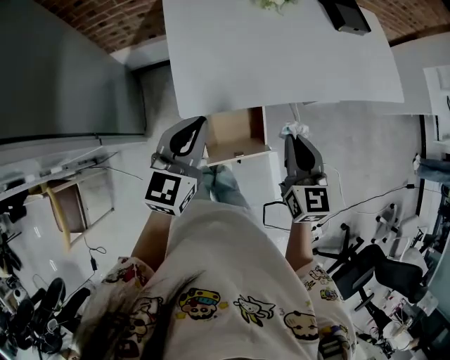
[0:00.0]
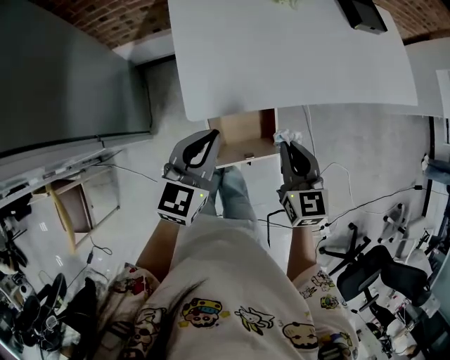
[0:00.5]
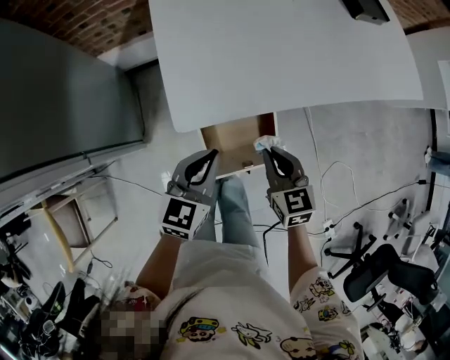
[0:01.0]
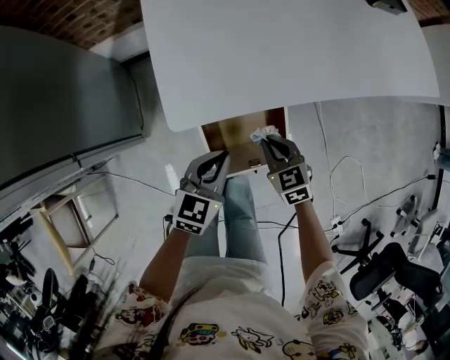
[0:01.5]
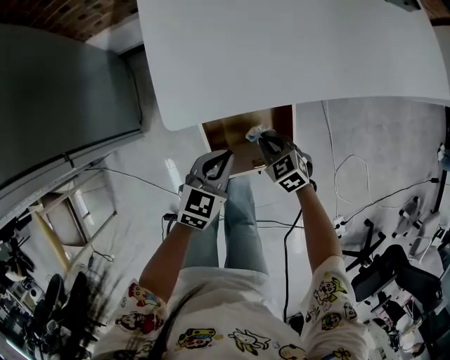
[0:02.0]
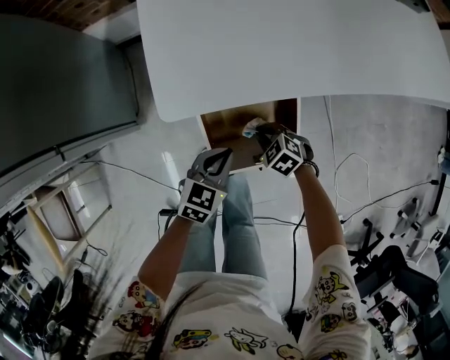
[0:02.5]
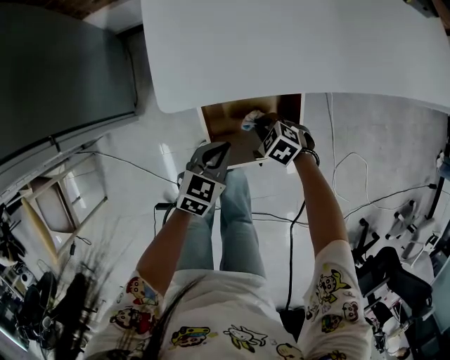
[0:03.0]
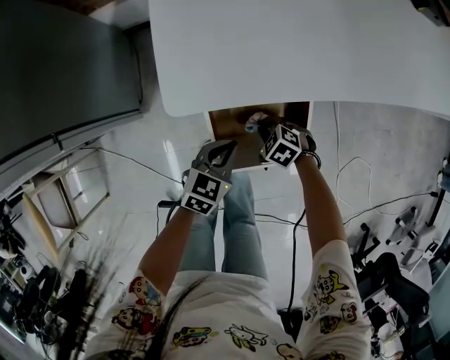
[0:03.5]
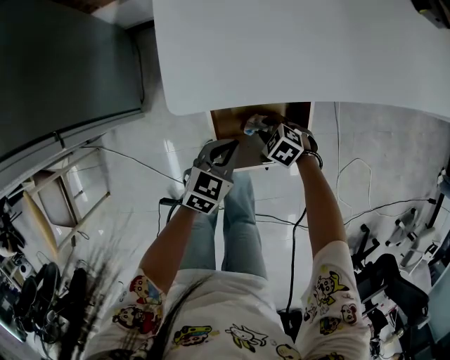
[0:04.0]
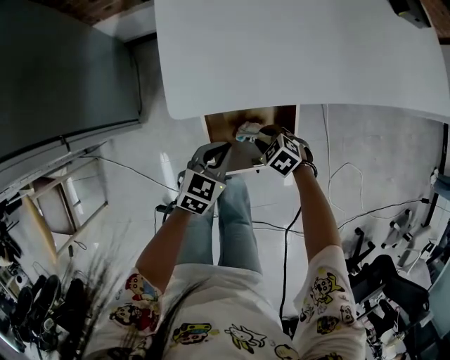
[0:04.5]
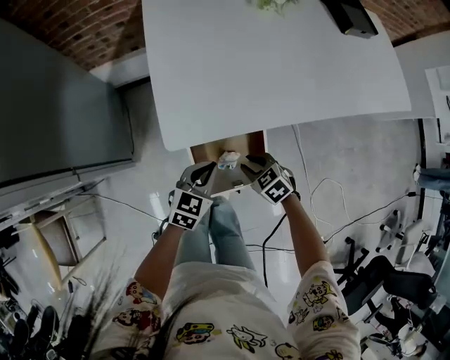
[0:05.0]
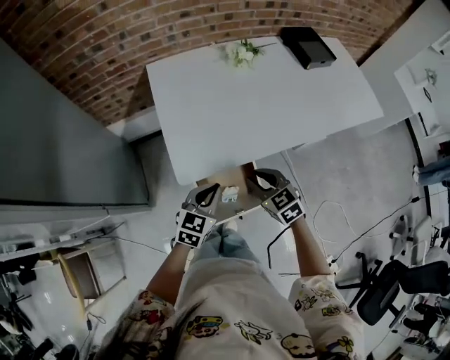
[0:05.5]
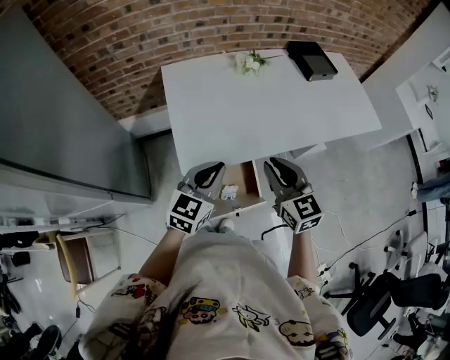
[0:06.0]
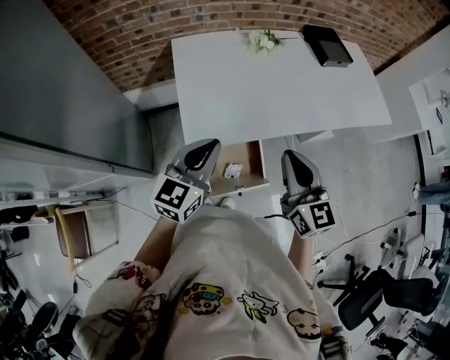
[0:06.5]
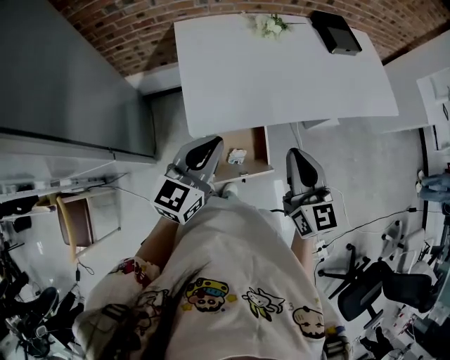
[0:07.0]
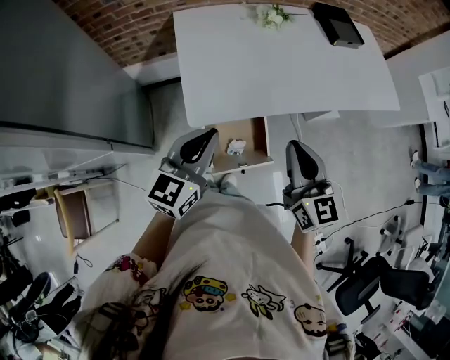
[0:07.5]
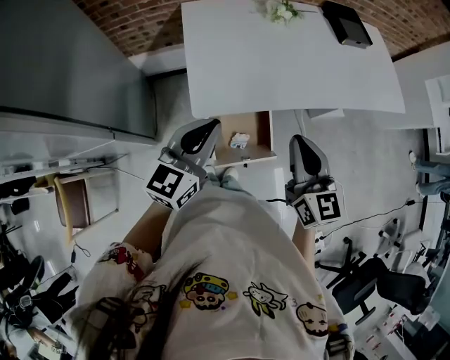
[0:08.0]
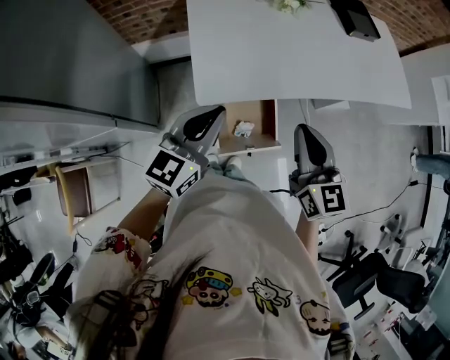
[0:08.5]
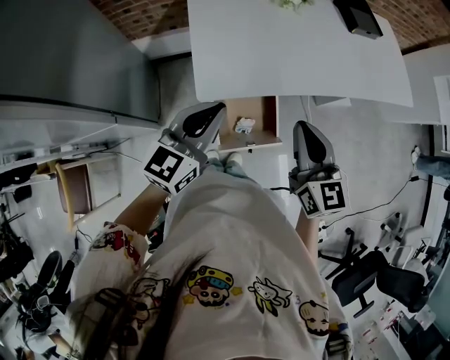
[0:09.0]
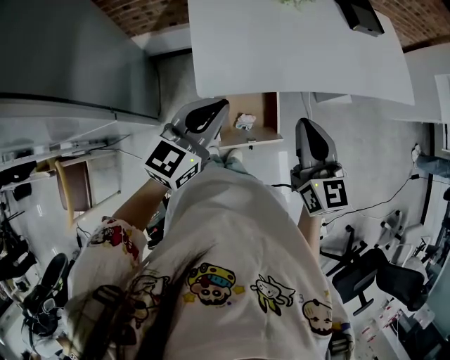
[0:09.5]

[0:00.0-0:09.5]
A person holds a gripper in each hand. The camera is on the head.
0:00.0 to 0:02.0: The grippers both shift downward by roughly 35 cm. The left gripper swivels about 20 degrees; the right gripper tilts its fingers approximately 30 degrees downward.
0:02.0 to 0:04.0: The grippers both shift downward by about 10 cm. The right gripper swivels some 30 degrees, and opens up.
0:04.0 to 0:05.5: Both grippers move upward, roughly 30 cm. The right gripper tips its fingers upward by approximately 30 degrees.
0:05.5 to 0:07.5: The two grippers go some 20 cm upward. The right gripper changes its angle by roughly 40 degrees, and closes its fingers.
0:07.5 to 0:09.5: The grippers move only a little.

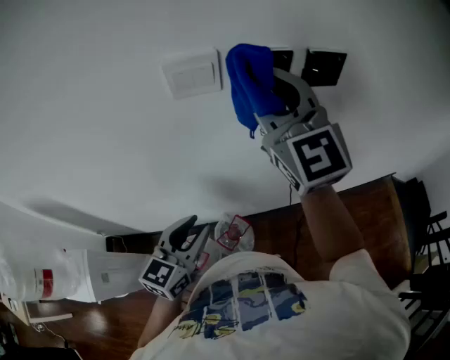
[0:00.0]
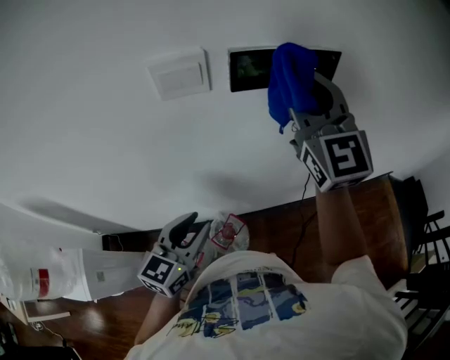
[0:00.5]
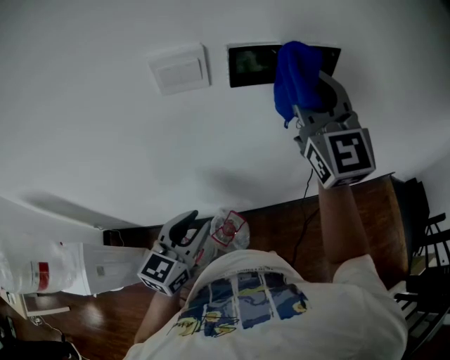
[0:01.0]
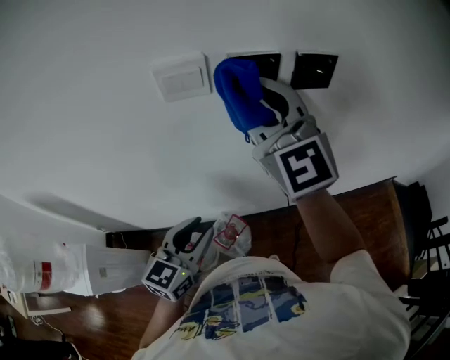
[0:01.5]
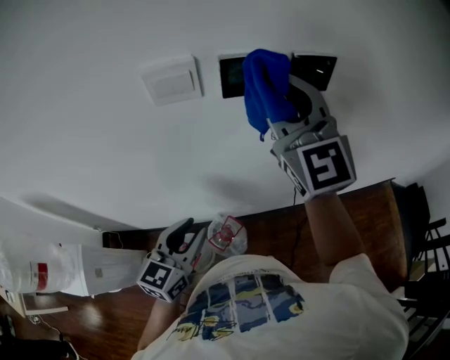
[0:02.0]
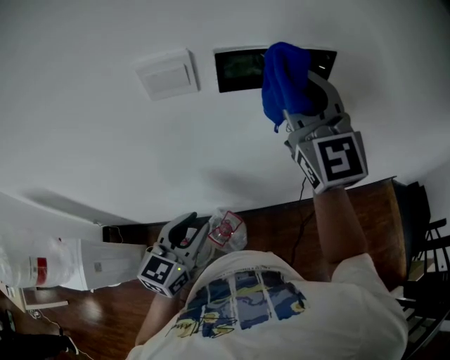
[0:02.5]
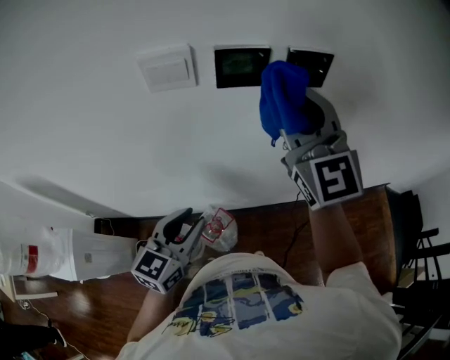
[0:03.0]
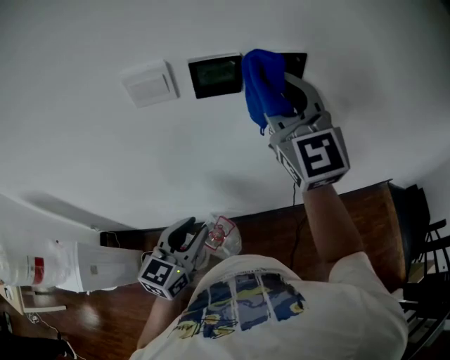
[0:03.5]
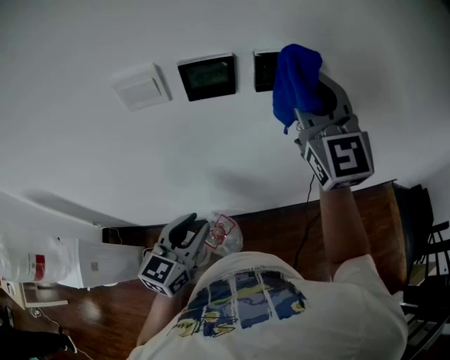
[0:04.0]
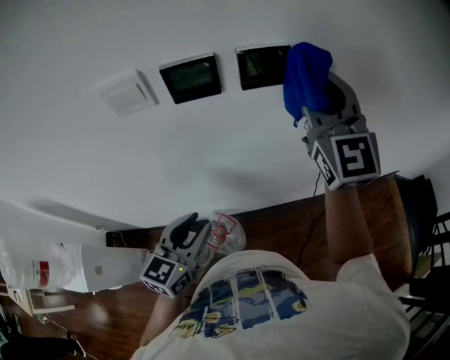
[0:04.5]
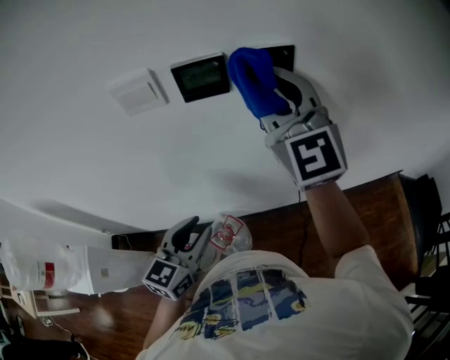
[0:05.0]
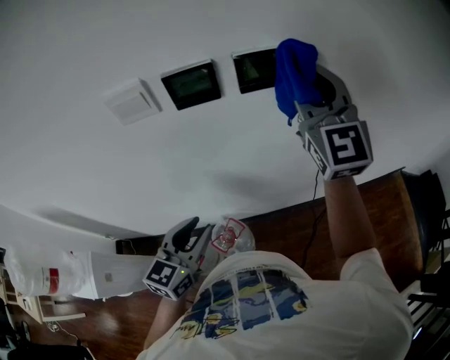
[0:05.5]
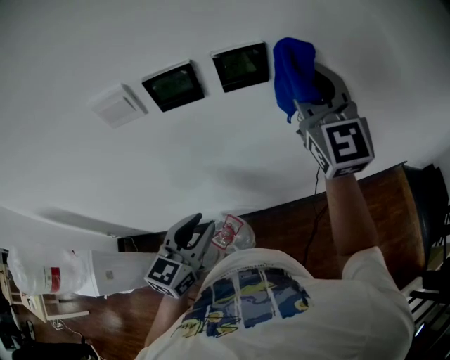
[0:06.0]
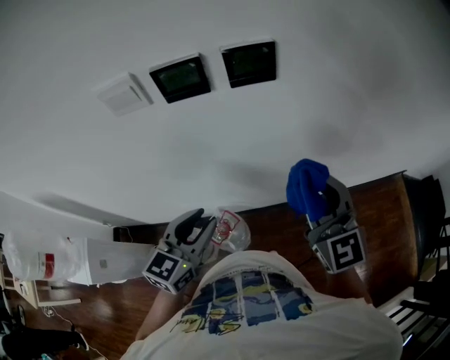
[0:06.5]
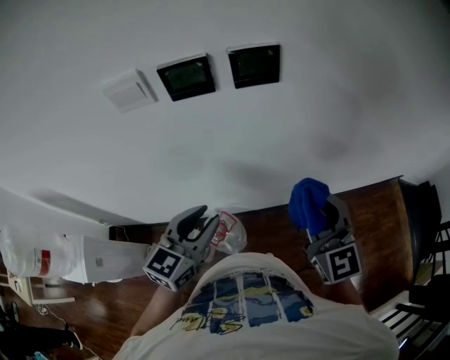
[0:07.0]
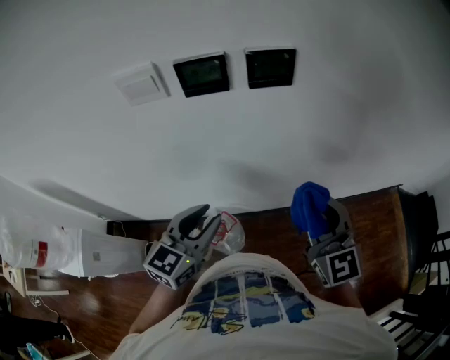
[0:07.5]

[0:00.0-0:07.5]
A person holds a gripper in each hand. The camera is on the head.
0:00.0 to 0:02.0: The right gripper goes left and right, roughly 10 cm each way, reversing 2 times.
0:02.0 to 0:04.0: The left gripper moves to the right, about 5 cm, while the right gripper heads to the right, covering roughly 10 cm.
0:04.0 to 0:05.5: The right gripper moves left and right over about 10 cm, changing direction 2 times.
0:05.5 to 0:07.5: The right gripper goes approximately 25 cm downward and backward, and swivels approximately 20 degrees.

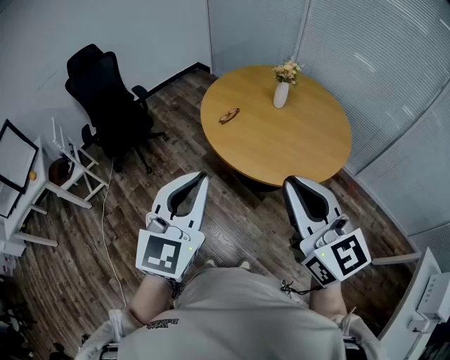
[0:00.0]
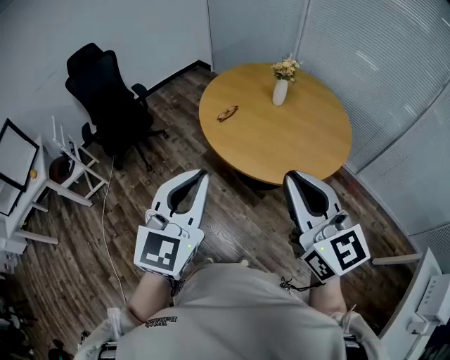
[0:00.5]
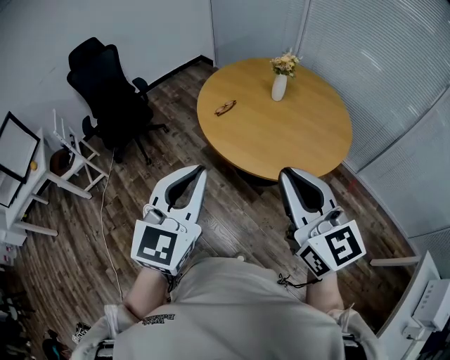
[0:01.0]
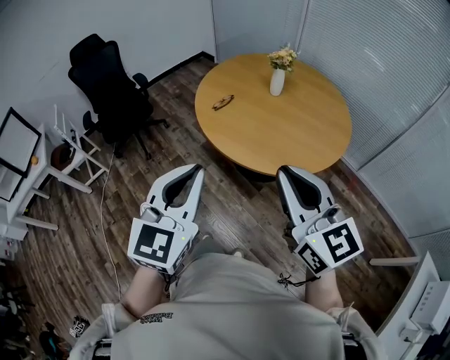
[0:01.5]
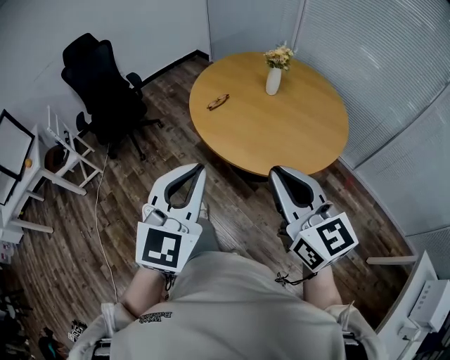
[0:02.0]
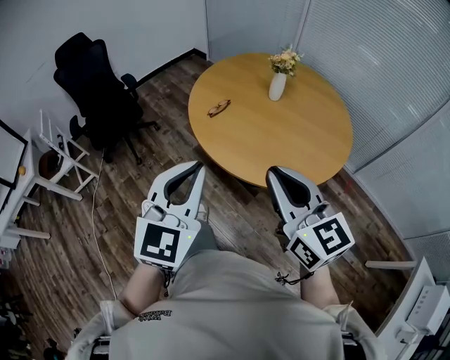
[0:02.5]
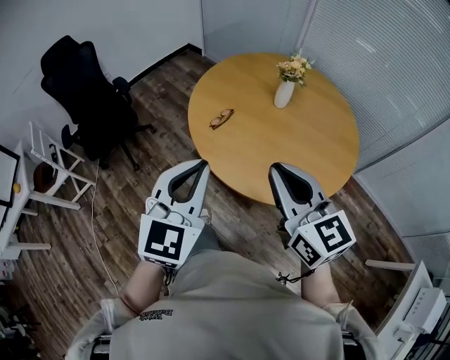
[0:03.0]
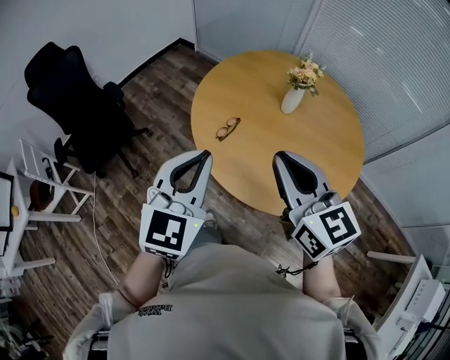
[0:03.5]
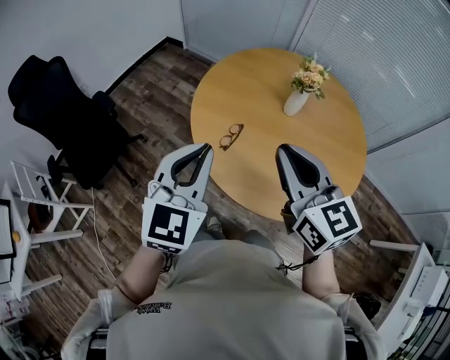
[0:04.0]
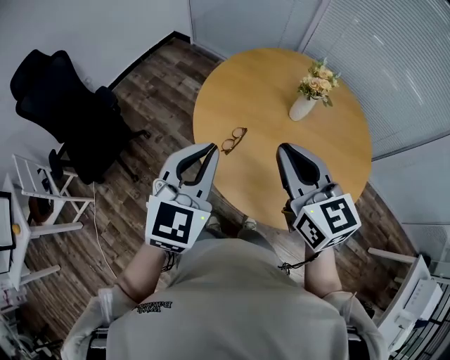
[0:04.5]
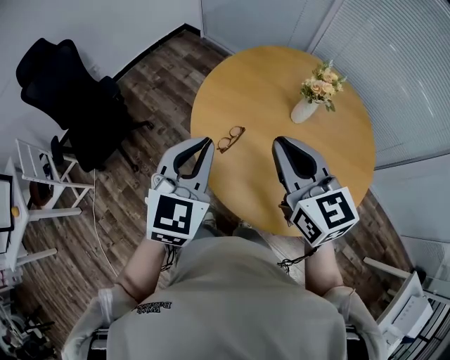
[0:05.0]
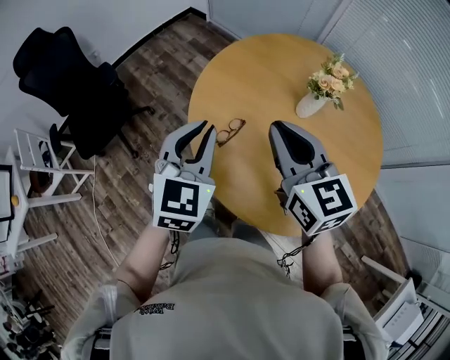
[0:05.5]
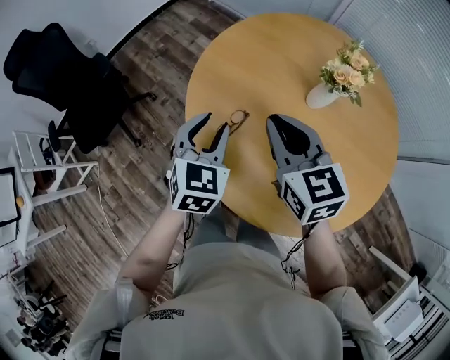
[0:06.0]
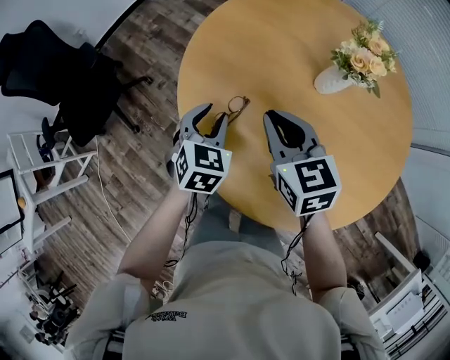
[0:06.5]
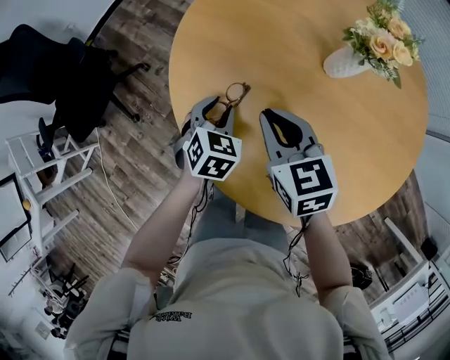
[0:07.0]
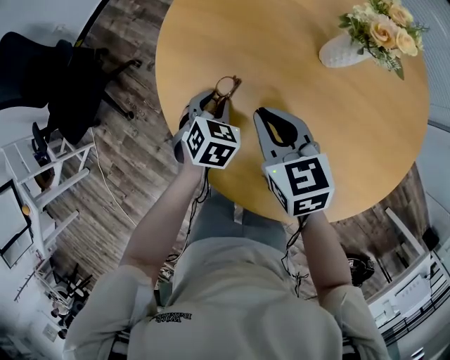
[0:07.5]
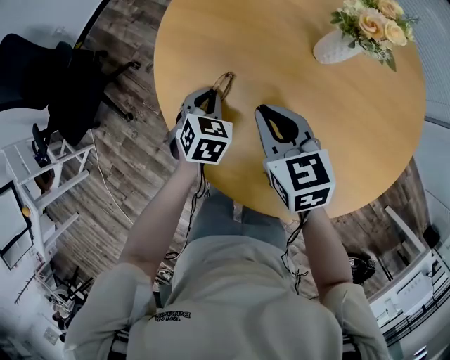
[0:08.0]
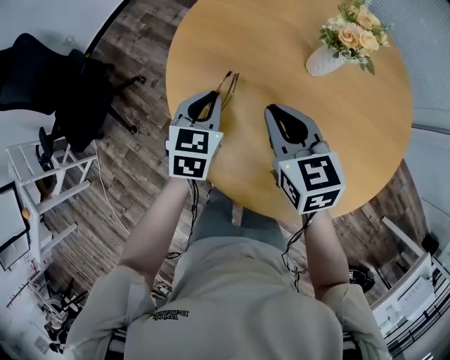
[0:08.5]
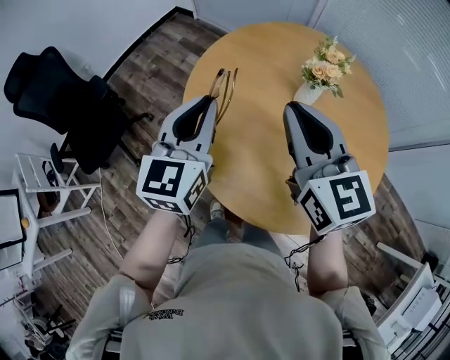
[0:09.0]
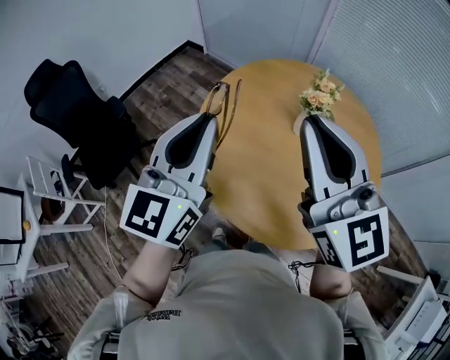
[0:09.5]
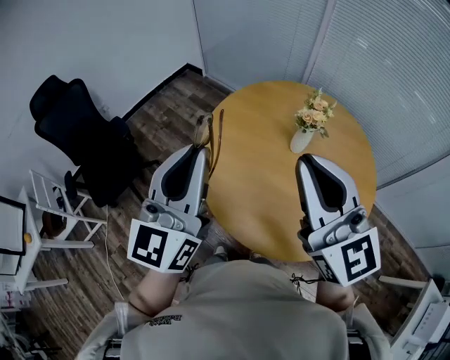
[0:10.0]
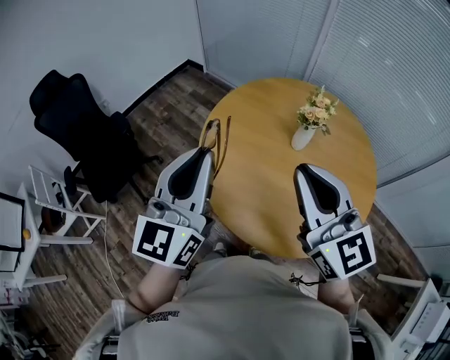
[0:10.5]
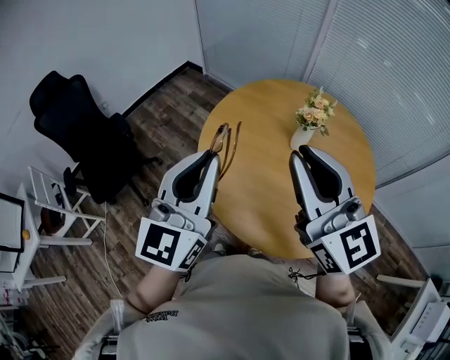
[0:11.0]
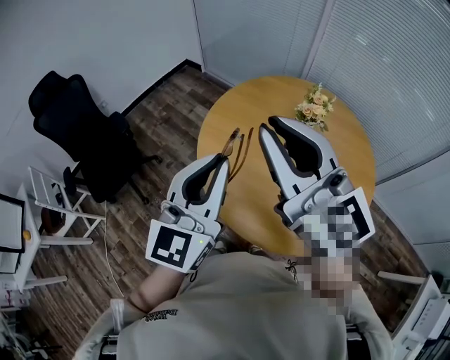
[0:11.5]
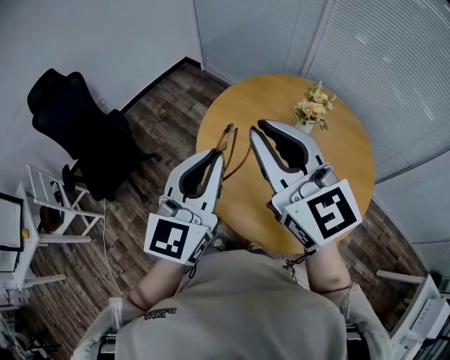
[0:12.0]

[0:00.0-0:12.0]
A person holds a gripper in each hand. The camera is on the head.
0:00.0 to 0:02.0: The left gripper goes some 5 cm to the right. The right gripper goes about 10 cm downward and to the right.
0:02.0 to 0:04.0: Both grippers move forward, some 35 cm.
0:04.0 to 0:06.0: The left gripper heads downward and forward, covering about 25 cm, rotates about 30 degrees, and opens. The right gripper moves forward and downward, approximately 20 cm.
0:06.0 to 0:08.0: Both grippers travel together downward, some 20 cm. The left gripper rotates about 20 degrees, and closes.
0:08.0 to 0:10.0: Both grippers move upward, about 50 cm. The right gripper tilts its fingers roughly 40 degrees upward; the left gripper tilts its fingers approximately 70 degrees upward.
0:10.0 to 0:12.0: The left gripper moves some 5 cm; the right gripper is displaced to the left by about 5 cm.
